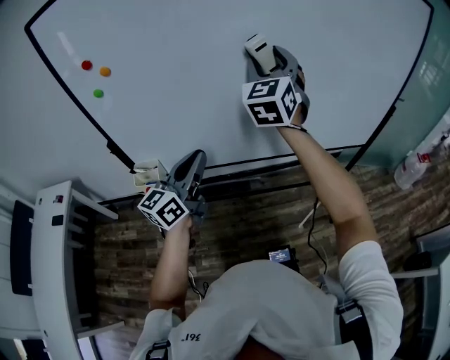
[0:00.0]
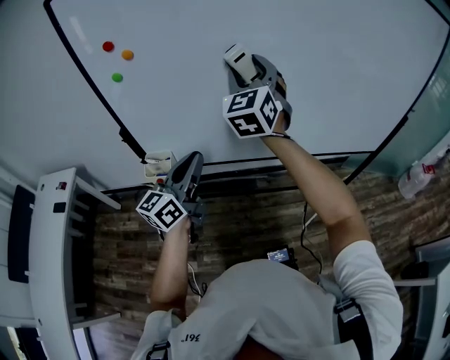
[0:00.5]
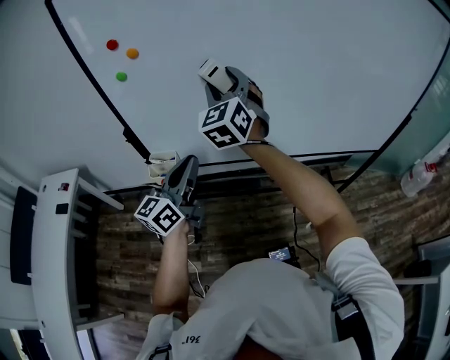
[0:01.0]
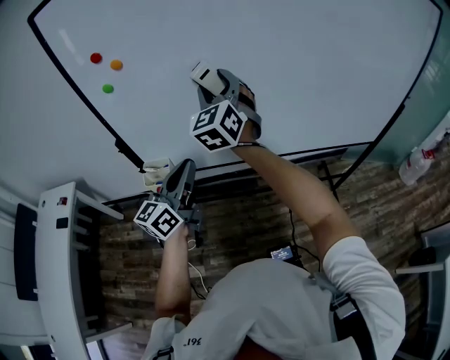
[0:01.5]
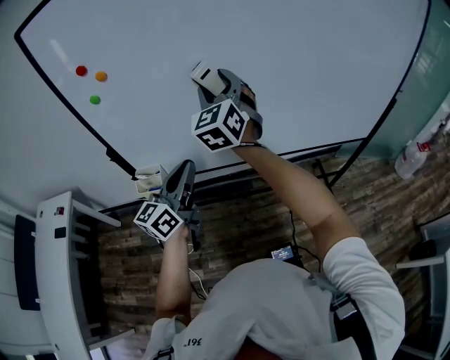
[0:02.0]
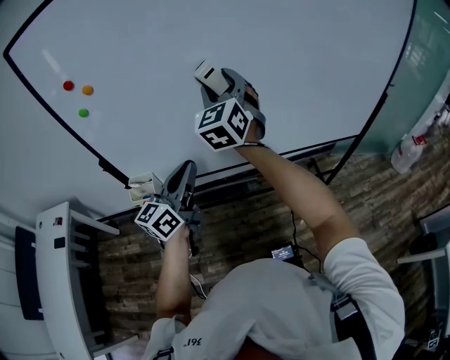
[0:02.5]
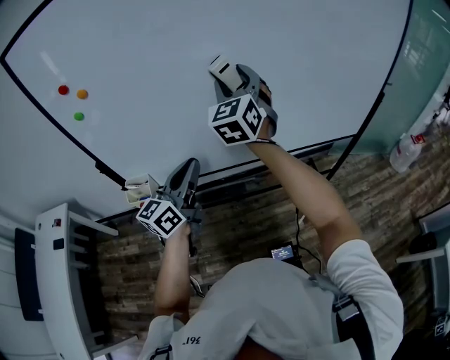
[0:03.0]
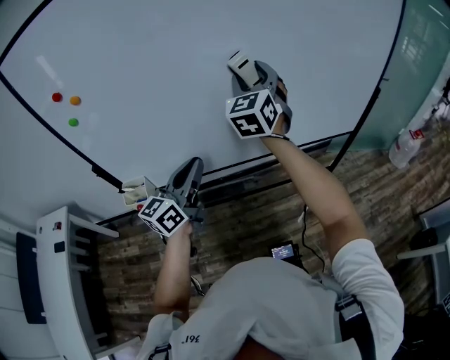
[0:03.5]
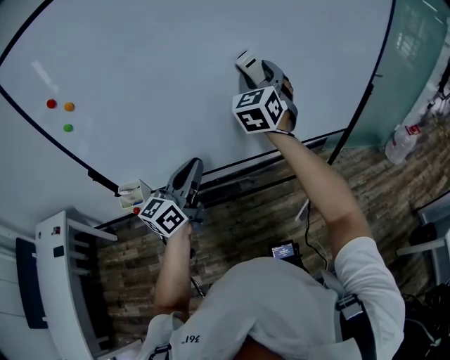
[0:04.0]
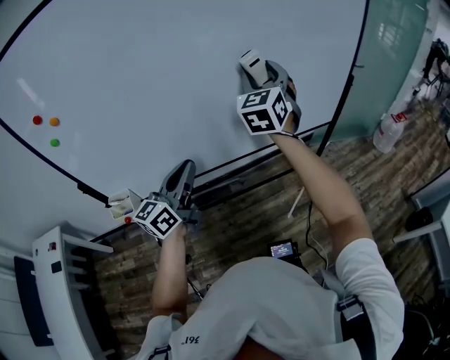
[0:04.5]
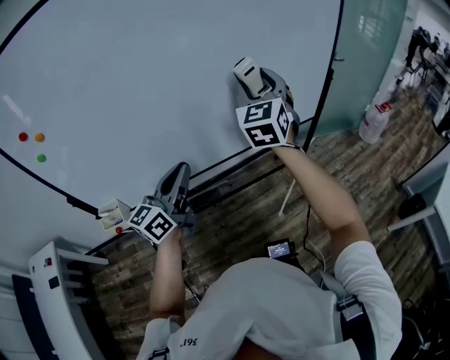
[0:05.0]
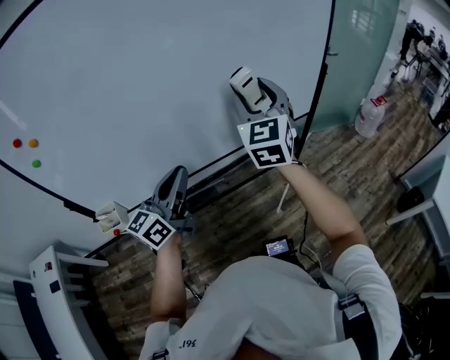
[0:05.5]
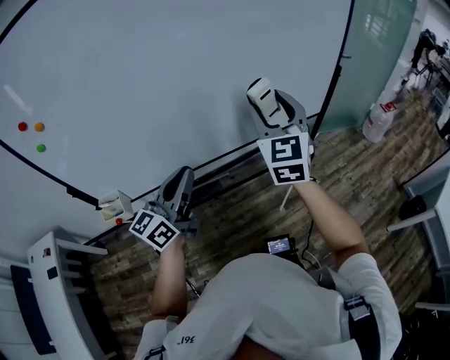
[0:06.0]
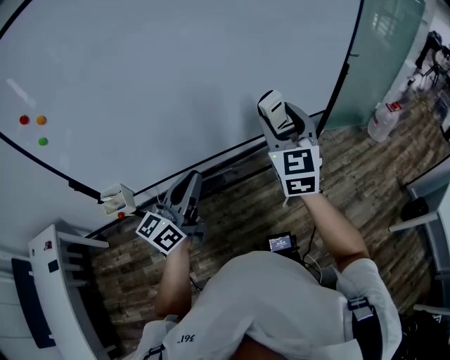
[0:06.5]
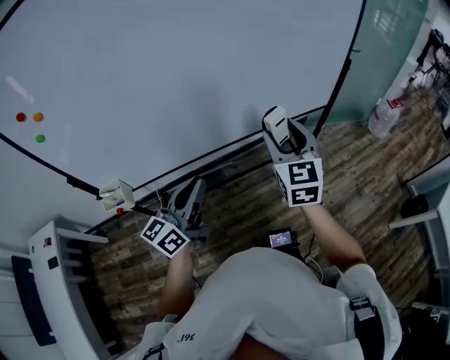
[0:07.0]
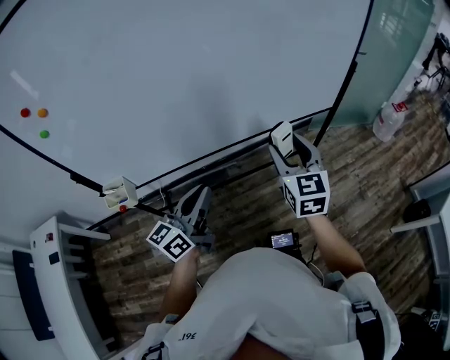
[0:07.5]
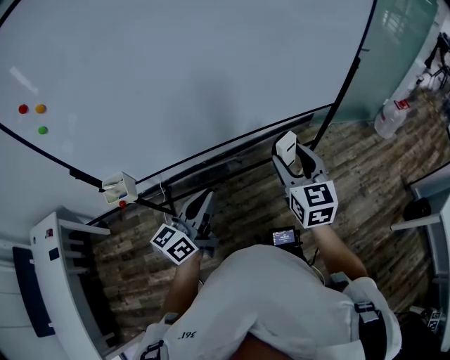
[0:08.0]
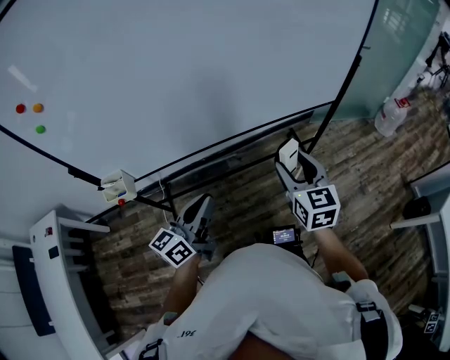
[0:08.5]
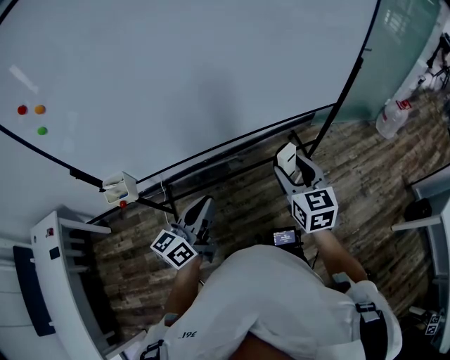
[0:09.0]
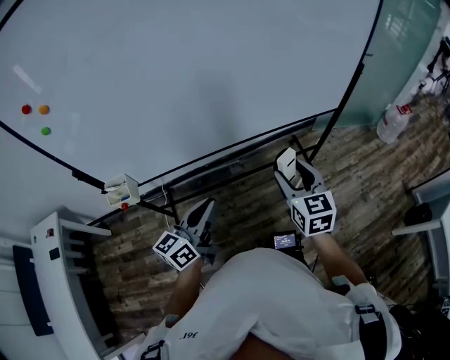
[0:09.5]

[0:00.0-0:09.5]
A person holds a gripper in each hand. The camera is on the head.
0:00.0 to 0:02.0: The left gripper shifts some 5 cm to the left. Meanwhile the right gripper is displaced to the left and downward by about 15 cm.
0:02.0 to 0:04.0: The left gripper is displaced to the right and forward by about 15 cm. The right gripper travels to the right and forward by about 25 cm.
0:04.0 to 0:05.5: The left gripper shifts roughly 5 cm to the right. Meanwhile the right gripper is displaced to the right and backward by roughly 15 cm.
0:05.5 to 0:07.5: The right gripper heads downward and backward, covering about 15 cm, and turns by about 20 degrees. The left gripper travels downward and backward by about 10 cm.
0:07.5 to 0:09.5: The right gripper goes about 5 cm downward.

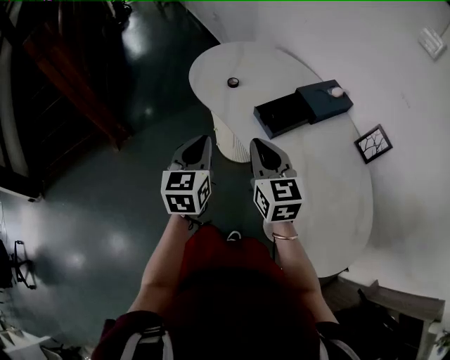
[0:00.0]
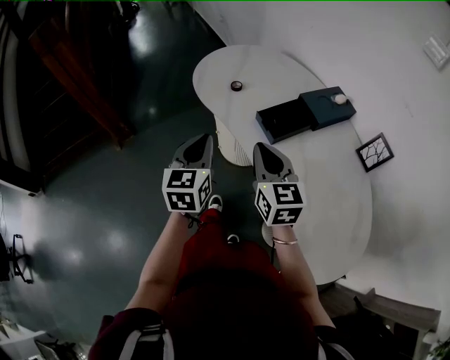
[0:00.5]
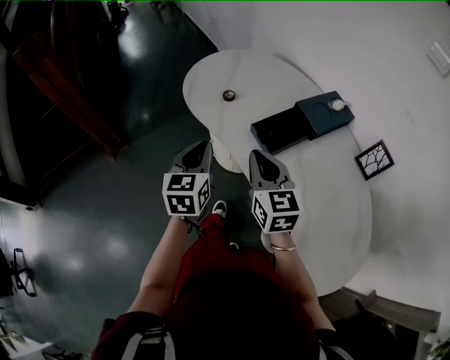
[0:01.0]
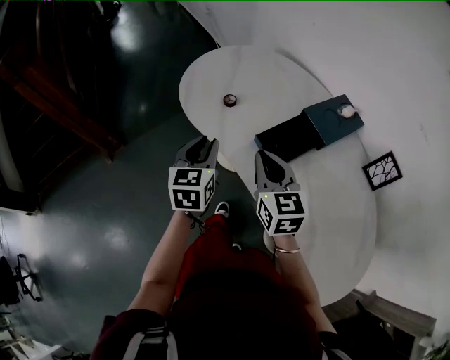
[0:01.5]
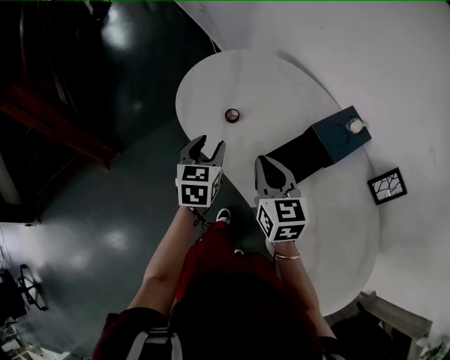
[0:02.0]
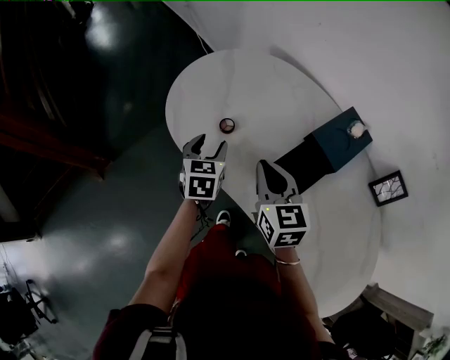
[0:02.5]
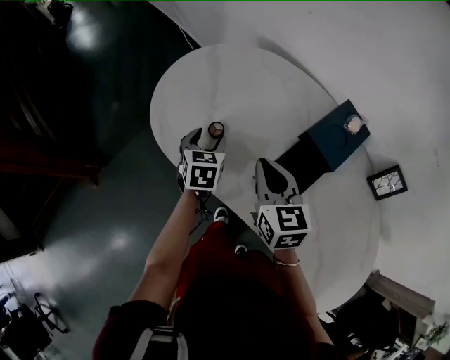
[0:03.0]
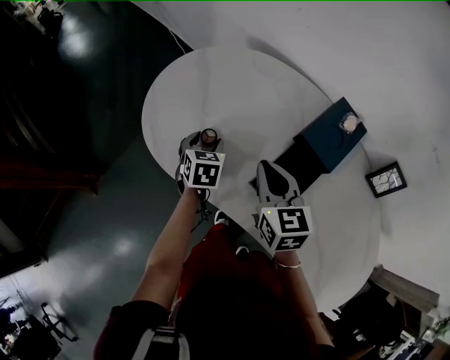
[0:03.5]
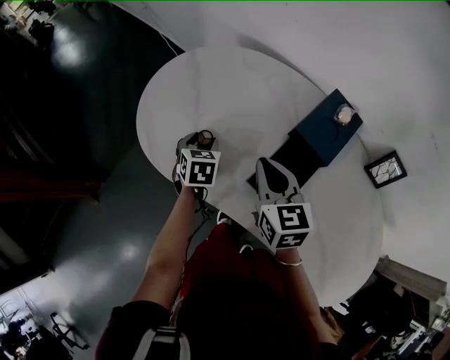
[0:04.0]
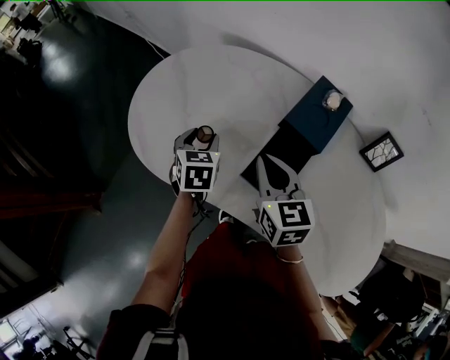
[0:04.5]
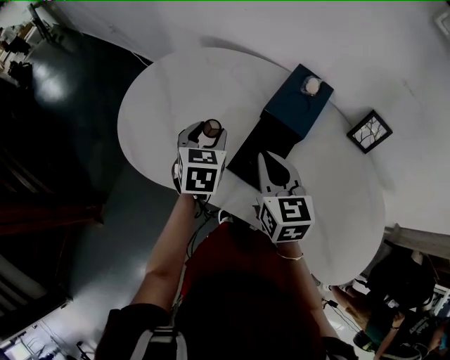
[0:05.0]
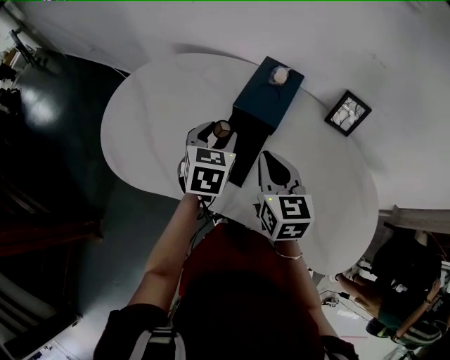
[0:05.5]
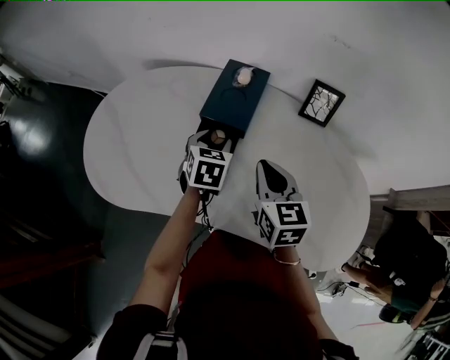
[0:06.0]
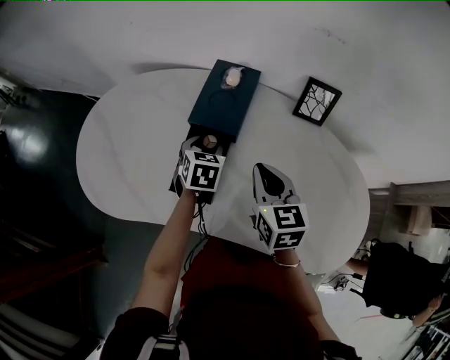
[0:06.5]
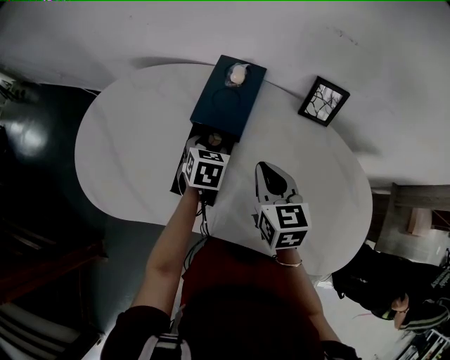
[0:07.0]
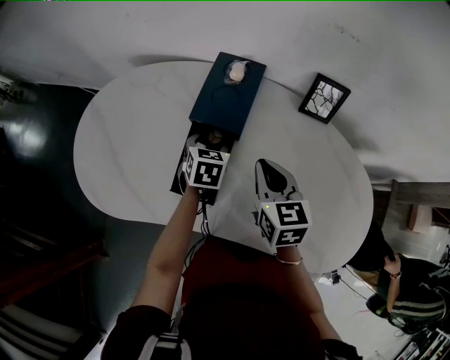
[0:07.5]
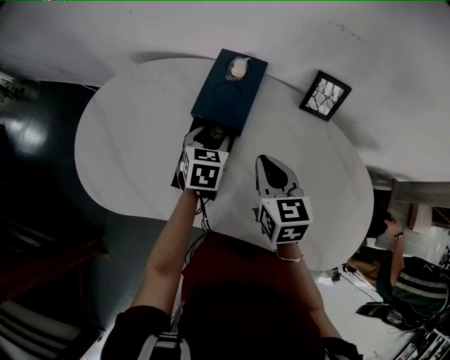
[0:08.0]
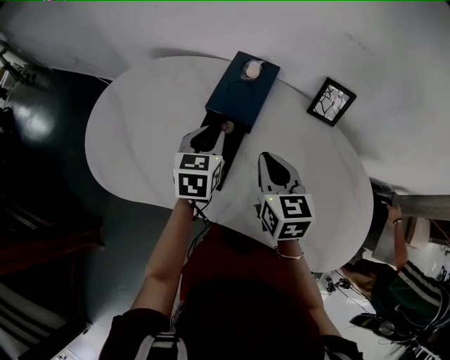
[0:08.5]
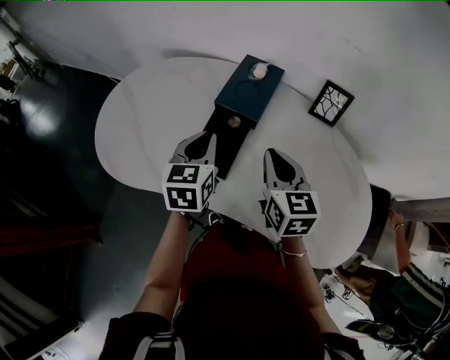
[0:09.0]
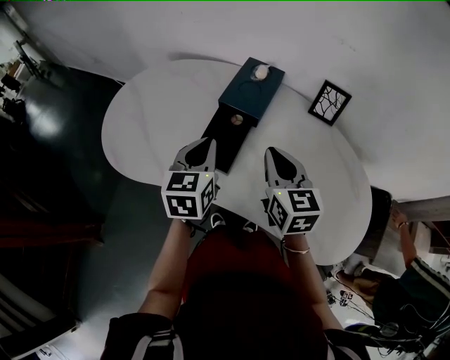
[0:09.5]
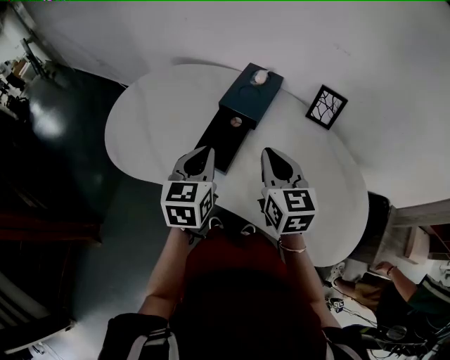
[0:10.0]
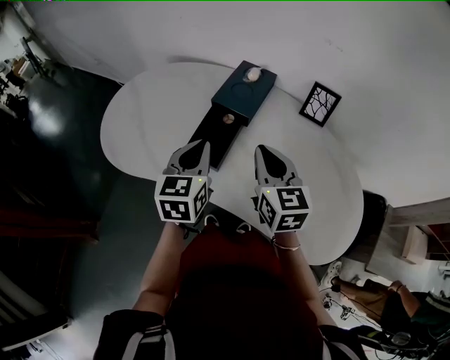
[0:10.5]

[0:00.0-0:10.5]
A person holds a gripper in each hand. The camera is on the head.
0:00.0 to 0:02.0: The grippers both shift forward by roughly 20 cm. The left gripper opens up.
0:02.0 to 0:04.0: The right gripper moves forward, some 10 cm, while the left gripper goes about 15 cm forward and downward, and rotates roughly 20 degrees.
0:04.0 to 0:06.5: The right gripper changes place by approximately 25 cm, and swivels roughly 30 degrees. The left gripper goes upward and returns, about 10 cm each way, and swivels roughly 30 degrees.
0:06.5 to 0:08.5: The left gripper heads upward, covering about 5 cm, and closes up.
0:08.5 to 0:10.5: The left gripper heads backward and upward, covering roughly 15 cm, and closes. The right gripper goes roughly 10 cm backward and upward.

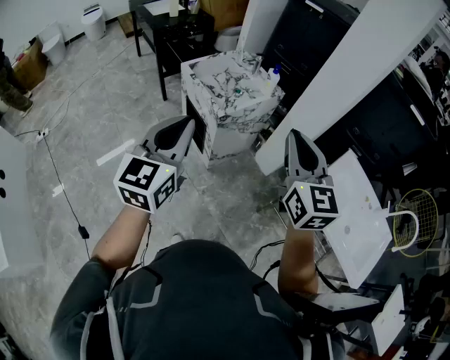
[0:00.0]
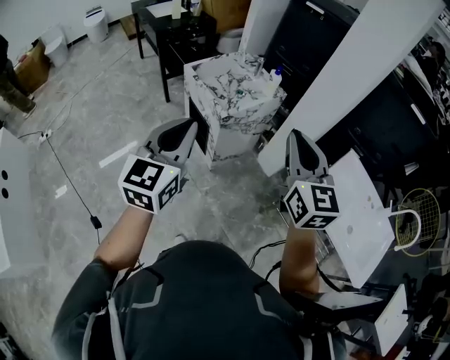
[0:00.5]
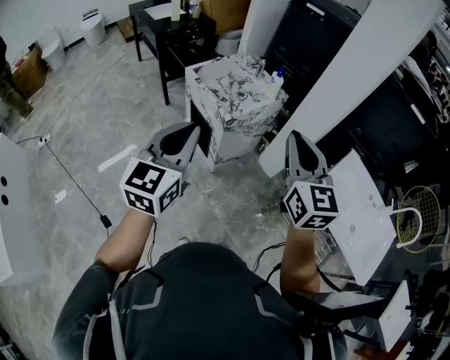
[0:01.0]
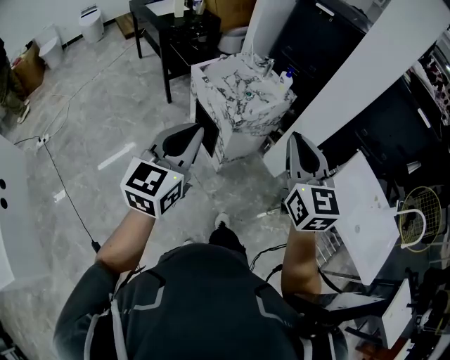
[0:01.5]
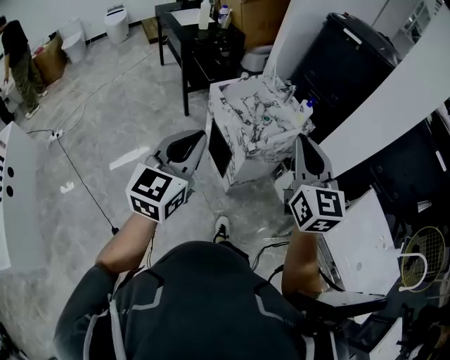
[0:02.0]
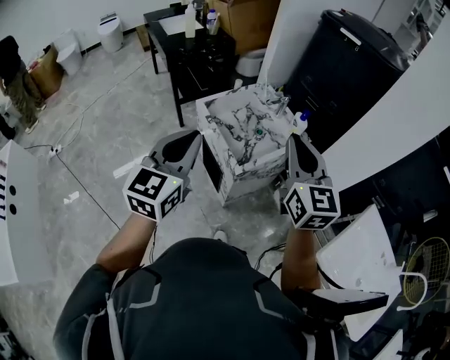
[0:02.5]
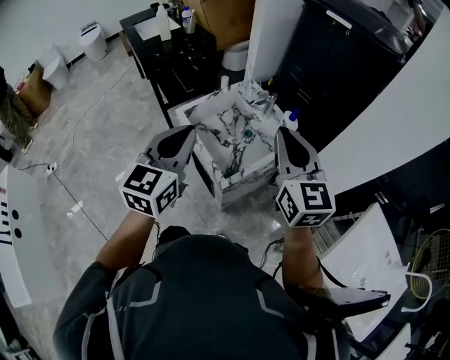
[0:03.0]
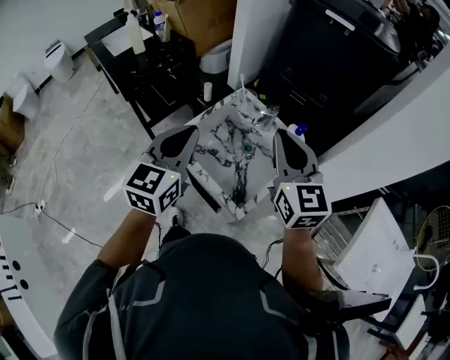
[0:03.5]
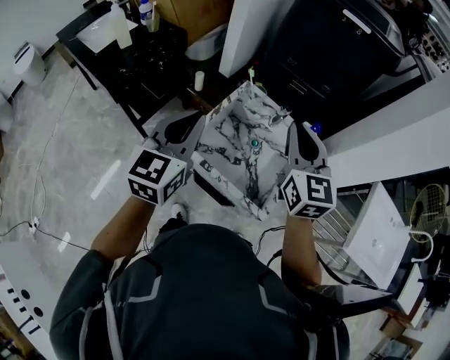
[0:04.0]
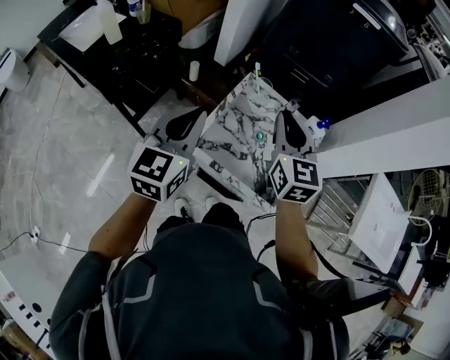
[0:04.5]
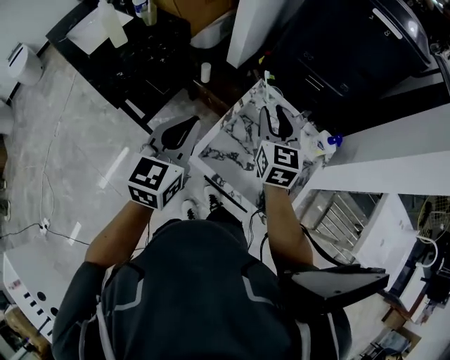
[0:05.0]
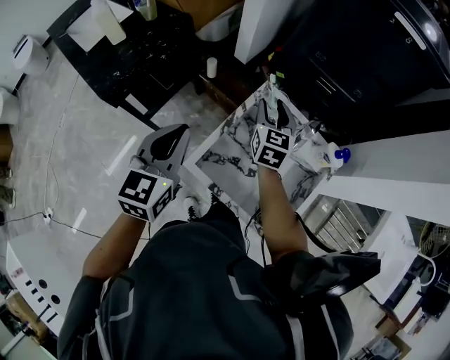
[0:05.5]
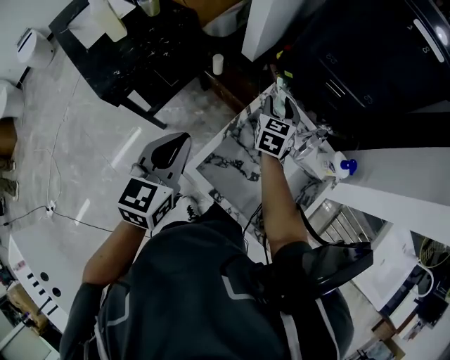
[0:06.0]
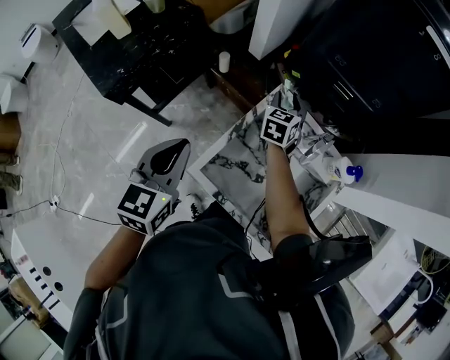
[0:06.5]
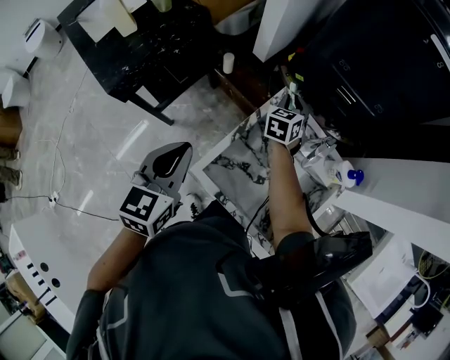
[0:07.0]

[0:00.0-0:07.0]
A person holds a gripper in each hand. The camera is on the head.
0:00.0 to 0:02.0: The left gripper is displaced to the left and forward by approximately 15 cm; the right gripper shifts about 15 cm forward and to the left.
0:02.0 to 0:03.5: The two grippers go some 40 cm forward.
0:03.5 to 0:05.0: The left gripper goes roughly 25 cm to the left, forward and downward, while the right gripper moves forward, to the left and downward, approximately 30 cm, turns by approximately 20 degrees, and opens.
0:05.0 to 0:07.0: The left gripper goes roughly 5 cm downward; the right gripper goes some 25 cm forward and downward, and swivels roughly 30 degrees.
